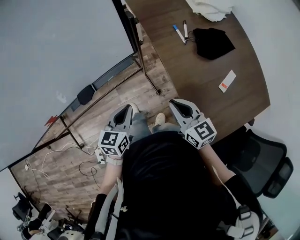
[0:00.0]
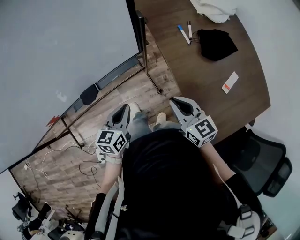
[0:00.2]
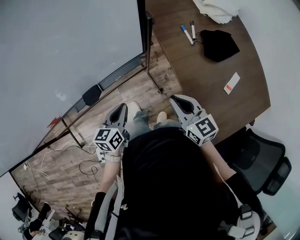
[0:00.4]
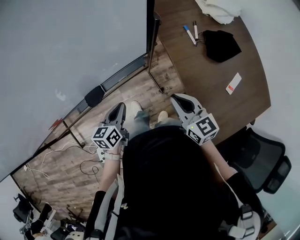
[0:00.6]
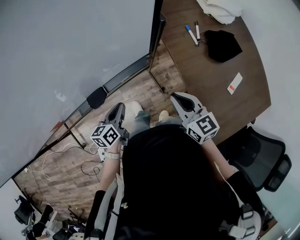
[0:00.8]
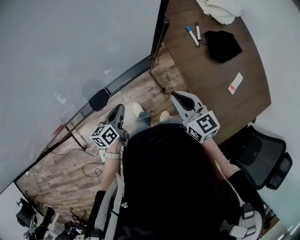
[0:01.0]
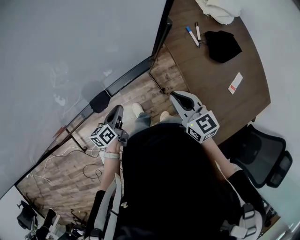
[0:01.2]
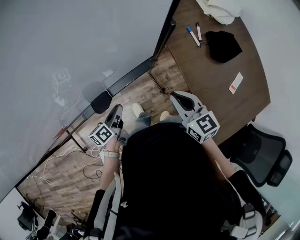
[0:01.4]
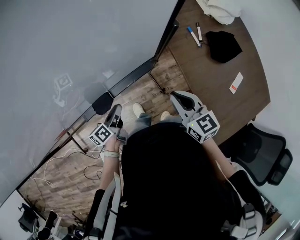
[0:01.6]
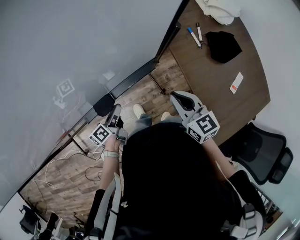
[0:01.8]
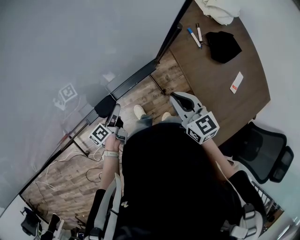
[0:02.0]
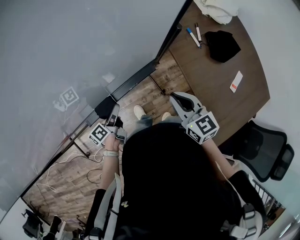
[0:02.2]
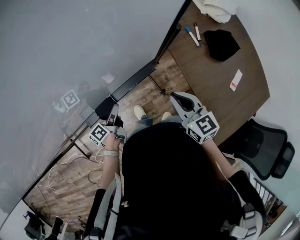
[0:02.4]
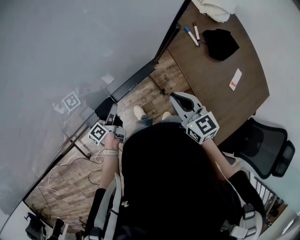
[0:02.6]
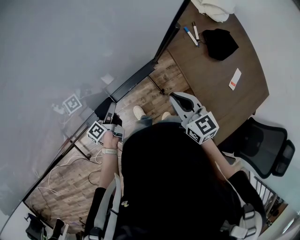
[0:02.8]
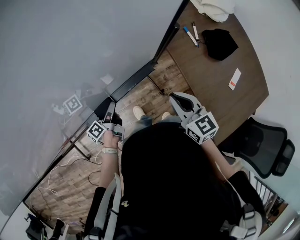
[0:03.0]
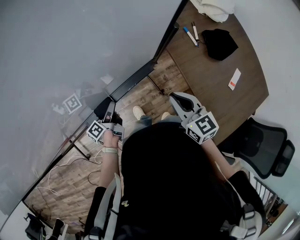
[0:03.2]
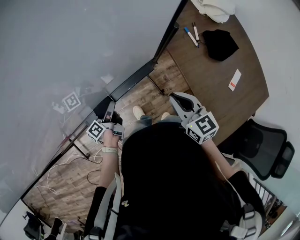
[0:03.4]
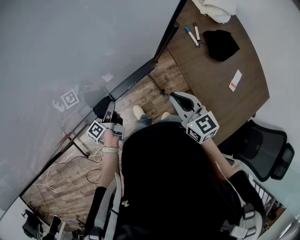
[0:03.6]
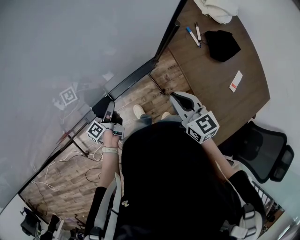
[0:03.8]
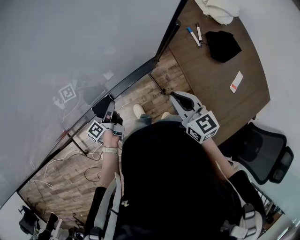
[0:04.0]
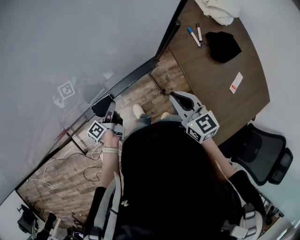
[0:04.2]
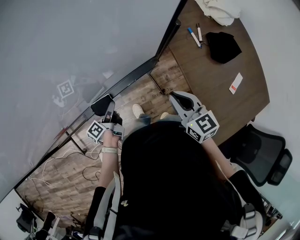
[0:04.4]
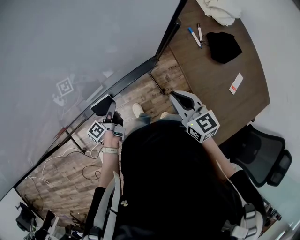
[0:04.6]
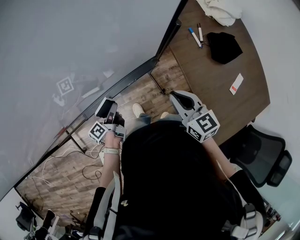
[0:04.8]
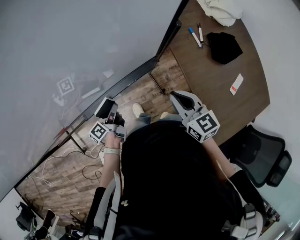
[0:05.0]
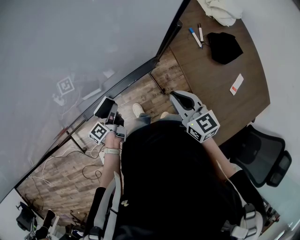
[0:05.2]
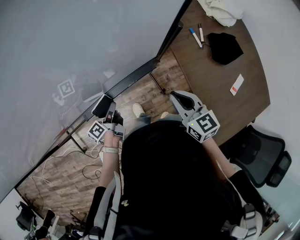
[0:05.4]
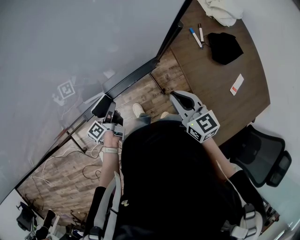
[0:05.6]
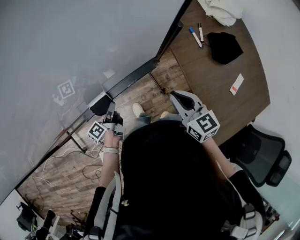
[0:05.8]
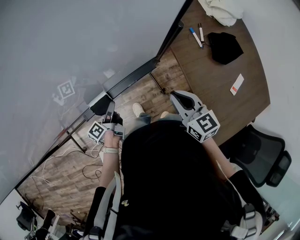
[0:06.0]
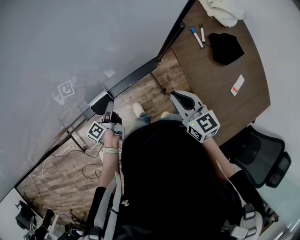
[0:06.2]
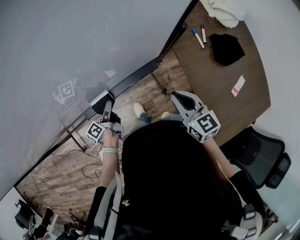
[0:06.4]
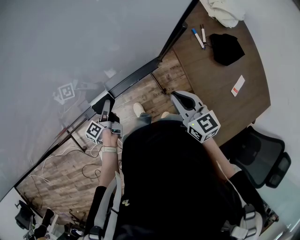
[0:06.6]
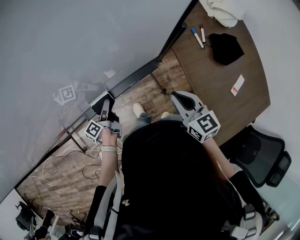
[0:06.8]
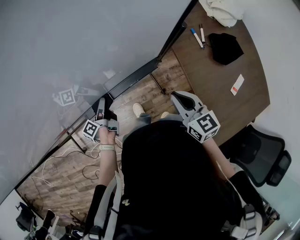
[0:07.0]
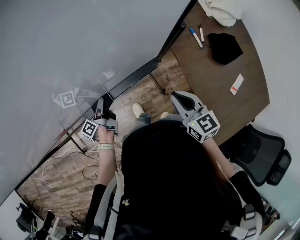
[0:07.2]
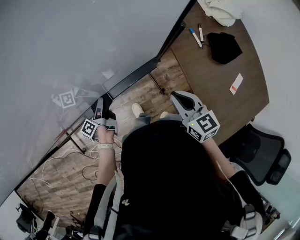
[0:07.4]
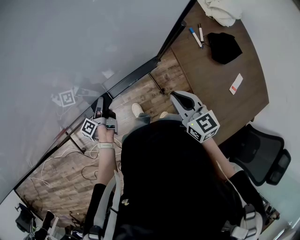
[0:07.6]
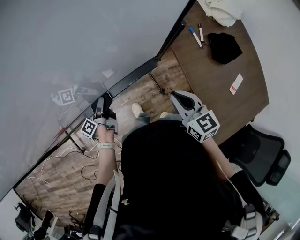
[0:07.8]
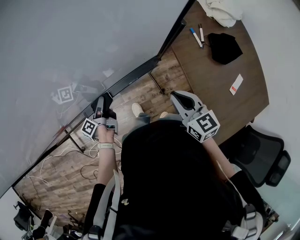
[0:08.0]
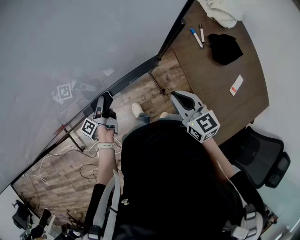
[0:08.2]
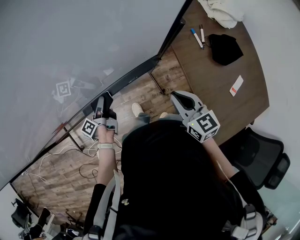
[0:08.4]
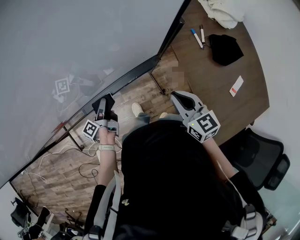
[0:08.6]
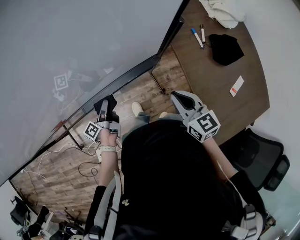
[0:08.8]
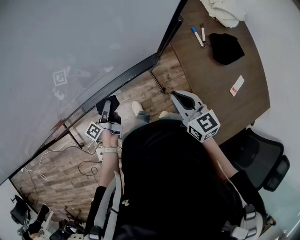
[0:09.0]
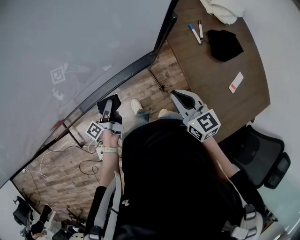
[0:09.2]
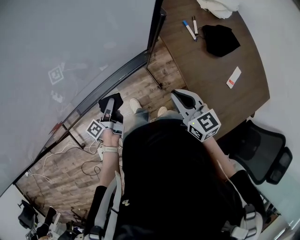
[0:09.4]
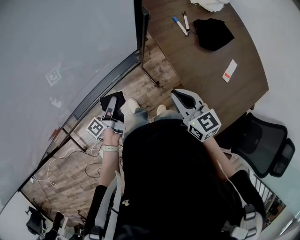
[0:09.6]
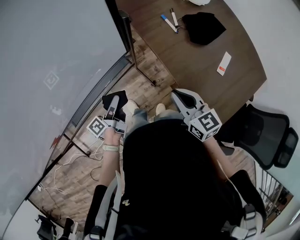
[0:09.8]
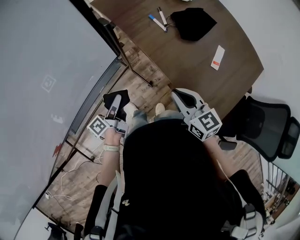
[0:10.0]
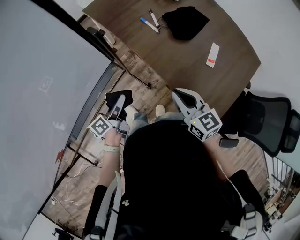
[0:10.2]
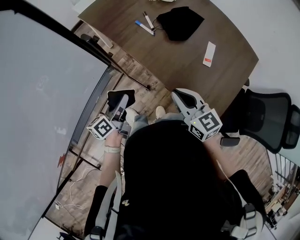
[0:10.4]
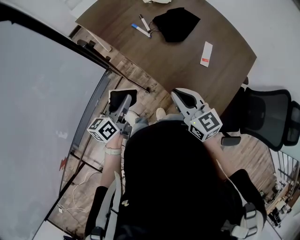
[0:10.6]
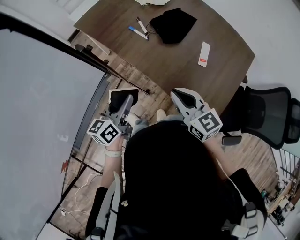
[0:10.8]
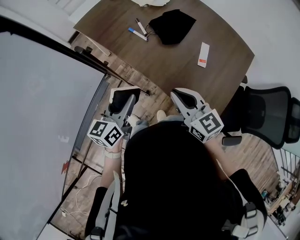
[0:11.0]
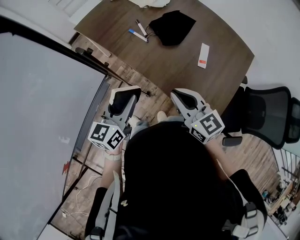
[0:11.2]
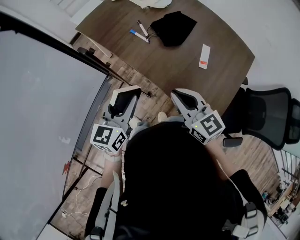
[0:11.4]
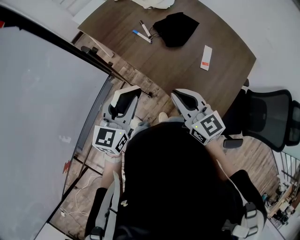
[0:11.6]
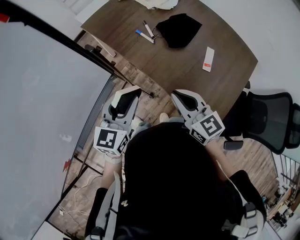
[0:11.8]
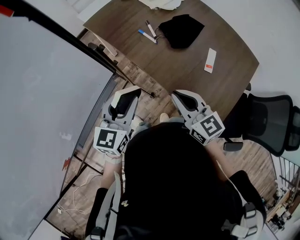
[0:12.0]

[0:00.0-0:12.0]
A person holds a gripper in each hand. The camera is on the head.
0:00.0 to 0:01.6: The right gripper is displaced to the left and forward by some 15 cm. Meanwhile the left gripper goes roughly 25 cm to the left, downward and forward, and rolls counterclockwise, seen from behind, by some 50 degrees.
0:01.6 to 0:03.0: The left gripper shifts by some 5 cm, and opens up.
0:03.0 to 0:04.4: The grippers make only small movements.
0:04.4 to 0:06.0: The left gripper closes and opens again.
0:06.0 to 0:07.6: The left gripper moves about 5 cm.
0:07.6 to 0:09.0: The left gripper moves backward, roughly 5 cm.
0:09.0 to 0:10.4: The right gripper shifts by approximately 20 cm, and changes its angle by about 20 degrees; the left gripper ends up about 30 cm from where it was, and rotates roughly 50 degrees.
0:10.4 to 0:12.0: The left gripper goes approximately 15 cm upward, and rotates around the line of its fingers by roughly 50 degrees, clockwise from behind. Meanwhile the right gripper ends up roughly 5 cm from where it was.

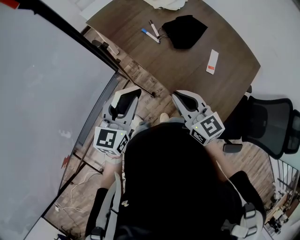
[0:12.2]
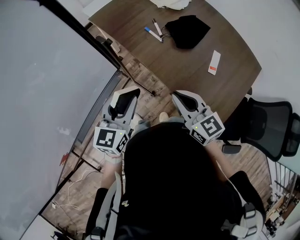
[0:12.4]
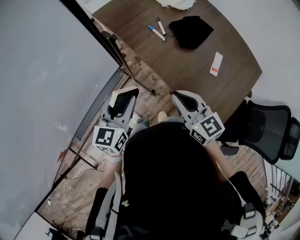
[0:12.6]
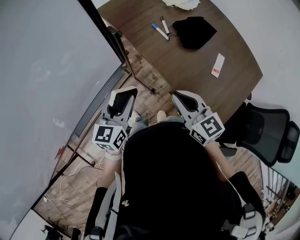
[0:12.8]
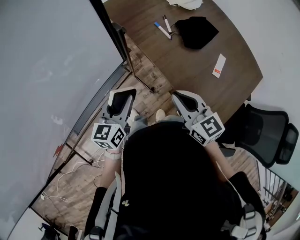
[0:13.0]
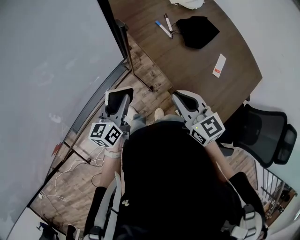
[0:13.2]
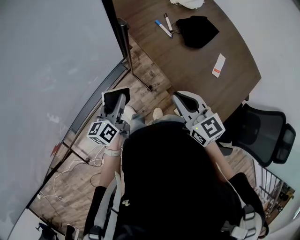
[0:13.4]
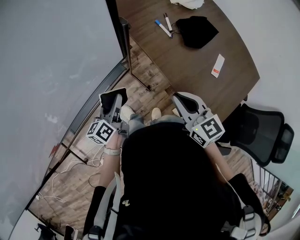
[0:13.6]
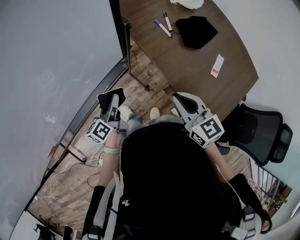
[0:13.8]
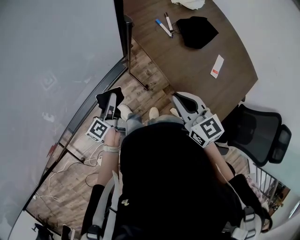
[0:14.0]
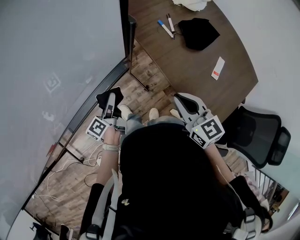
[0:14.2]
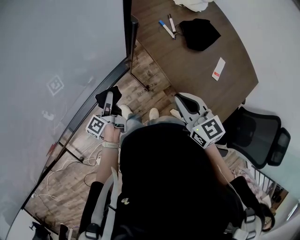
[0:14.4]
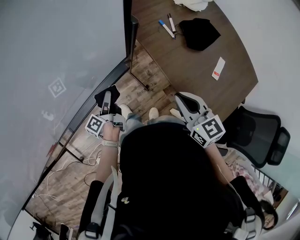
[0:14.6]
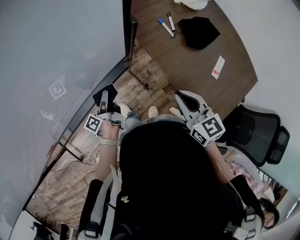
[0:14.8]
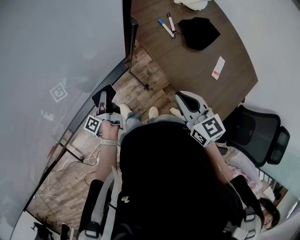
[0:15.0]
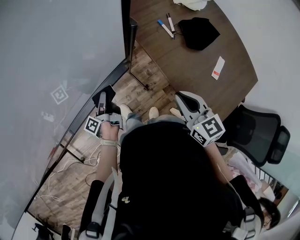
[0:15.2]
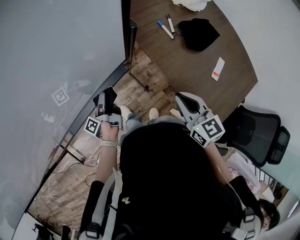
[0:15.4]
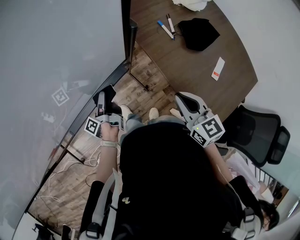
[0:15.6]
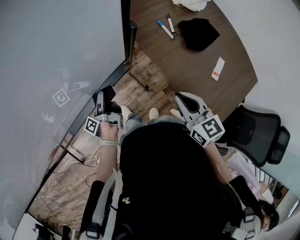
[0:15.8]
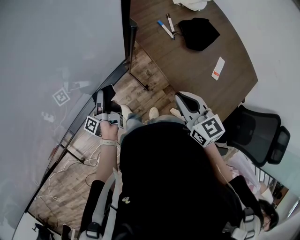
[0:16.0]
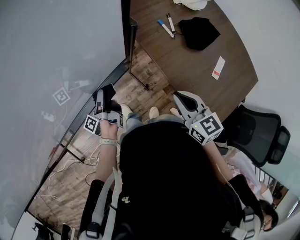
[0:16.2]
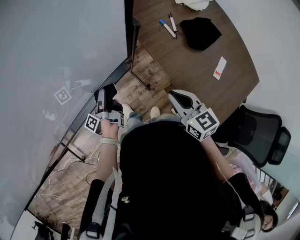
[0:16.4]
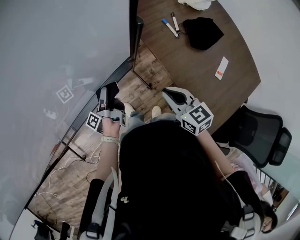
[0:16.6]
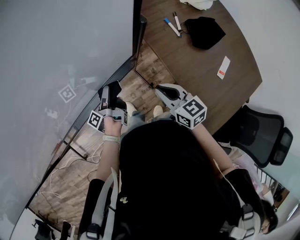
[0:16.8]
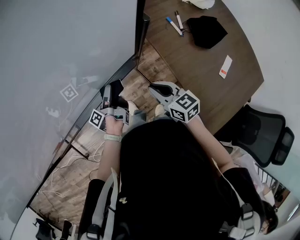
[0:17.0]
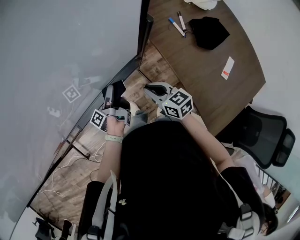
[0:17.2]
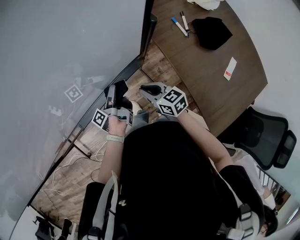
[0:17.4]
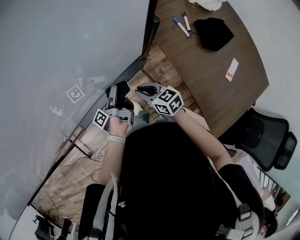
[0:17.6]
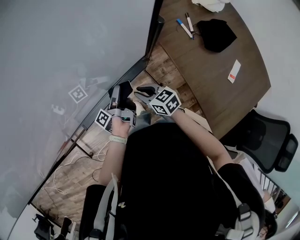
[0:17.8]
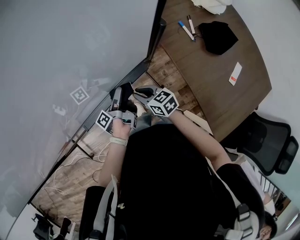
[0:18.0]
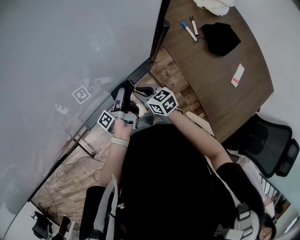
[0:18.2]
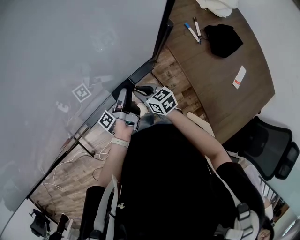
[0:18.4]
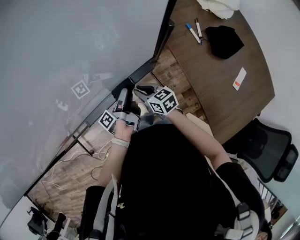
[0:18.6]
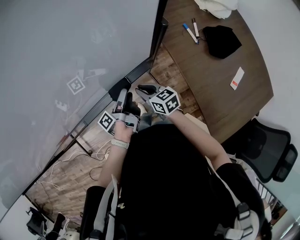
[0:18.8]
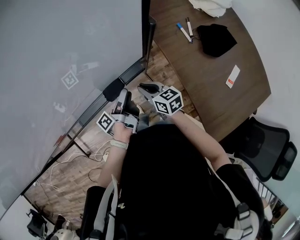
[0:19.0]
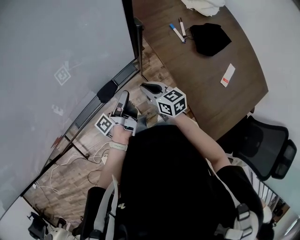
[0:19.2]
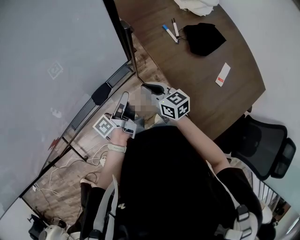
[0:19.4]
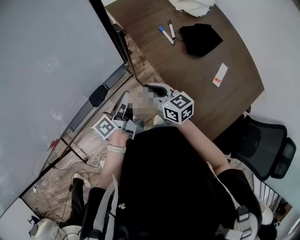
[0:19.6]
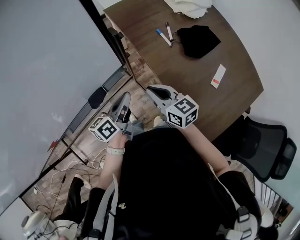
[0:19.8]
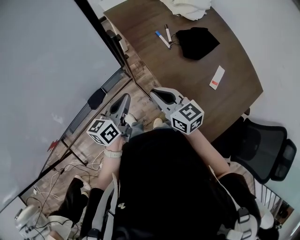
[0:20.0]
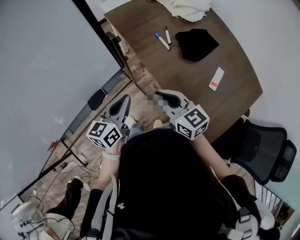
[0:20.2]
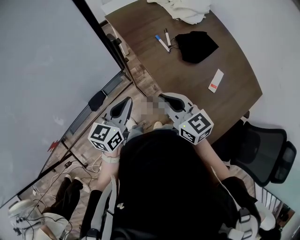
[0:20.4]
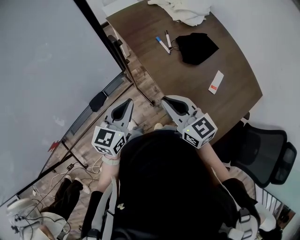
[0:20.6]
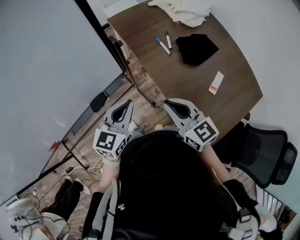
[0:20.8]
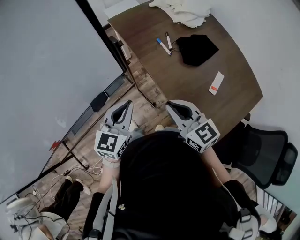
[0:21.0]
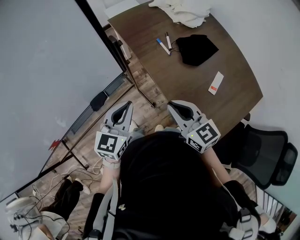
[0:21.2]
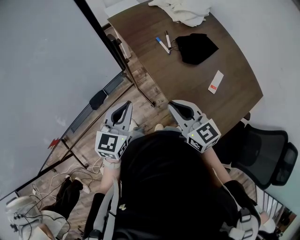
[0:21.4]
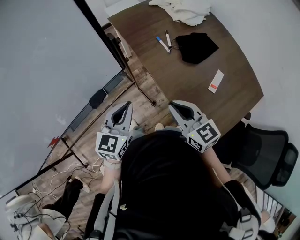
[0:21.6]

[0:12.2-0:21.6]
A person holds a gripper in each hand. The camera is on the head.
0:12.2 to 0:13.8: The left gripper shifts about 20 cm downward and to the left, and rotates around the line of its fingers by approximately 50 degrees, counterclockwise from behind. The right gripper moves to the left, roughly 5 cm.
0:13.8 to 0:15.4: The left gripper is displaced downward and to the left by roughly 10 cm, and twists about 40 degrees counterclockwise, seen from behind.
0:15.4 to 0:17.0: The right gripper moves to the left, downward and forward, approximately 15 cm.
0:17.0 to 0:18.4: The right gripper is displaced to the left, downward and forward by some 15 cm.
0:18.4 to 0:20.0: The left gripper heads upward and to the right, covering approximately 25 cm, rotates around the line of its fingers by some 70 degrees, clockwise from behind, and closes up. The right gripper moves to the right and upward, approximately 25 cm, and changes its angle by about 20 degrees.
0:20.0 to 0:21.6: The right gripper shifts some 10 cm backward and to the right, while the left gripper moves upward and backward, roughly 10 cm, and turns by some 30 degrees.

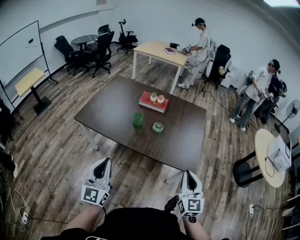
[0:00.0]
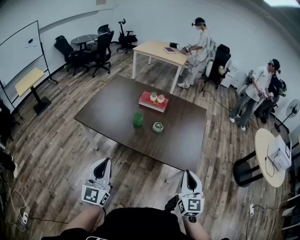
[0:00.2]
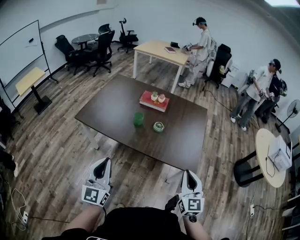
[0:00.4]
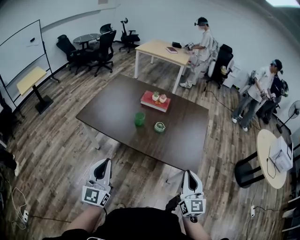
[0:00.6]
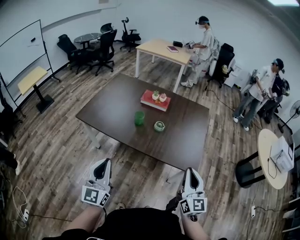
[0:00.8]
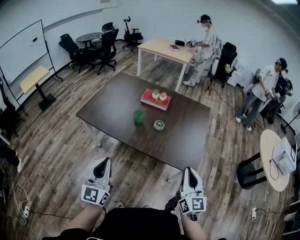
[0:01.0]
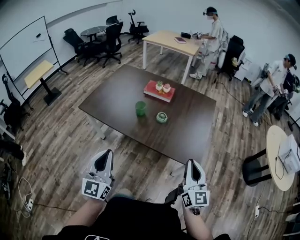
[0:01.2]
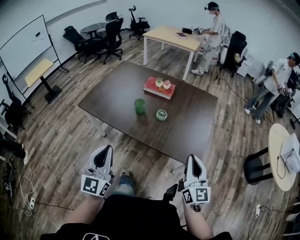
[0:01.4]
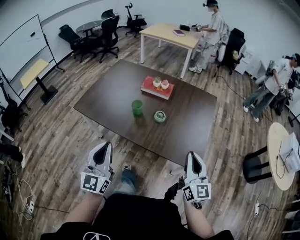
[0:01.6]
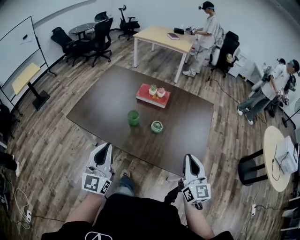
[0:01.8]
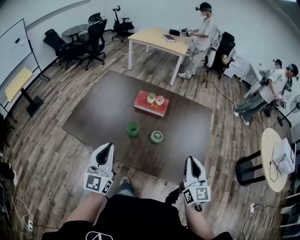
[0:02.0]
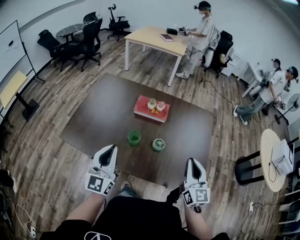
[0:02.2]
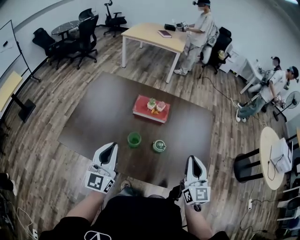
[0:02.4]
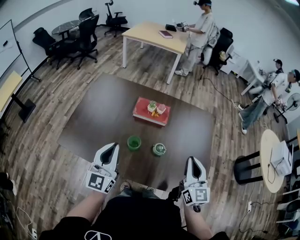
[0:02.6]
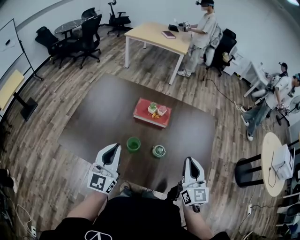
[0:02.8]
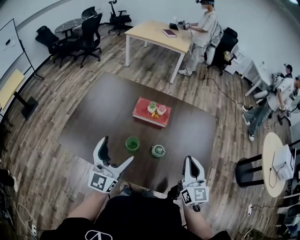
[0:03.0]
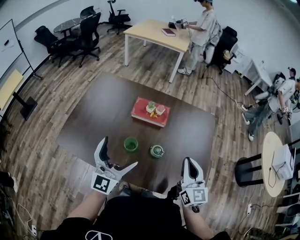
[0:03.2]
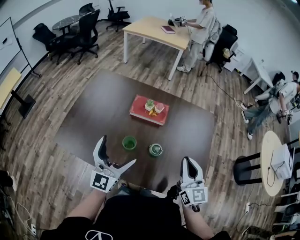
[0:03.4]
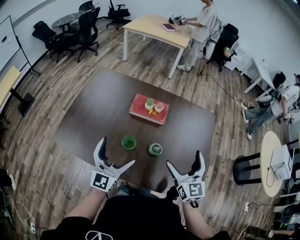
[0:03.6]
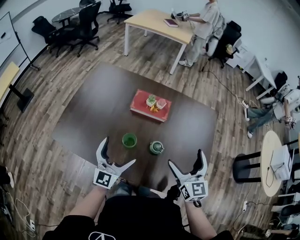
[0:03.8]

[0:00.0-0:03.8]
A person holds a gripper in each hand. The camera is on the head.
0:00.0 to 0:01.2: Both grippers move to the right, about 5 cm.
0:01.2 to 0:02.6: Both grippers travel together forward, about 35 cm.
0:02.6 to 0:03.8: The left gripper shifts about 10 cm downward and to the right, and opens its fingers; the right gripper goes some 5 cm forward, and opens.
